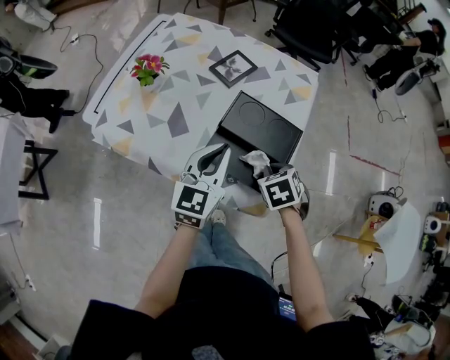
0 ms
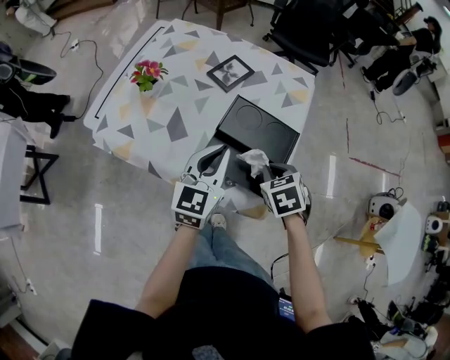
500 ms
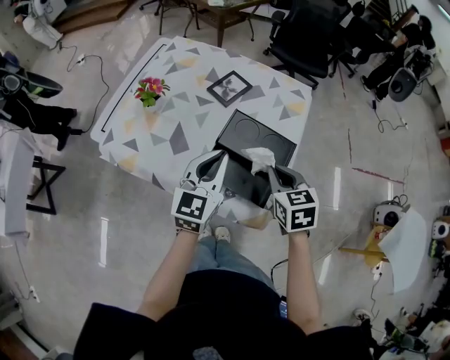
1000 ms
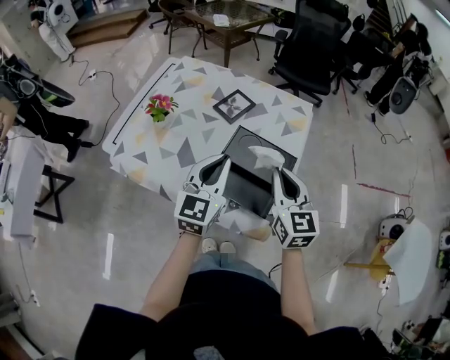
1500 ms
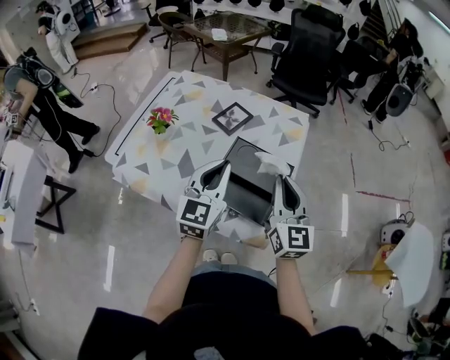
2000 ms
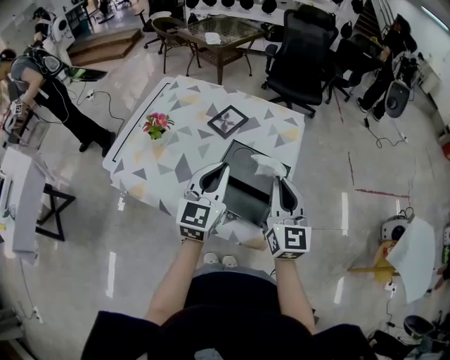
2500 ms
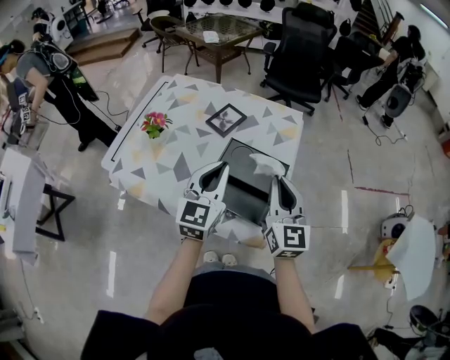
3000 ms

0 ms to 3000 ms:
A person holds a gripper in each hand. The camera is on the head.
0 ms to 1500 ms: The right gripper travels upward by roughly 15 cm, and tips its fingers upward by about 50 degrees, while the left gripper travels upward by about 5 cm.
1500 ms to 3000 ms: The grippers make only small movements.

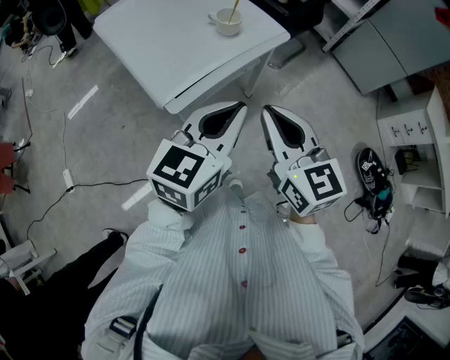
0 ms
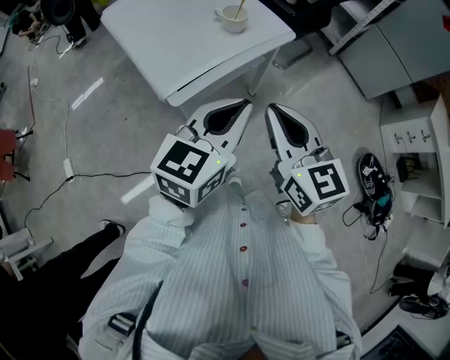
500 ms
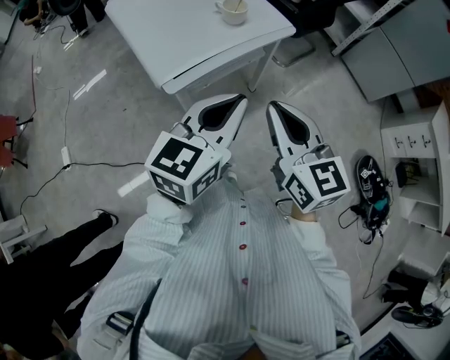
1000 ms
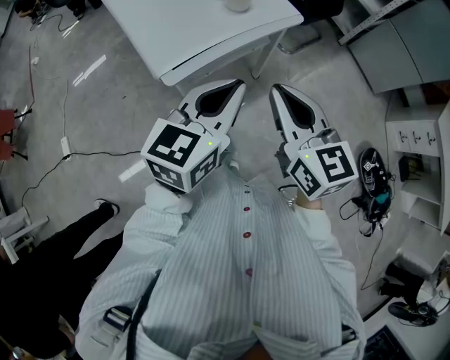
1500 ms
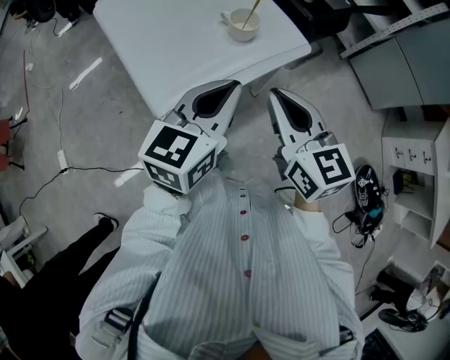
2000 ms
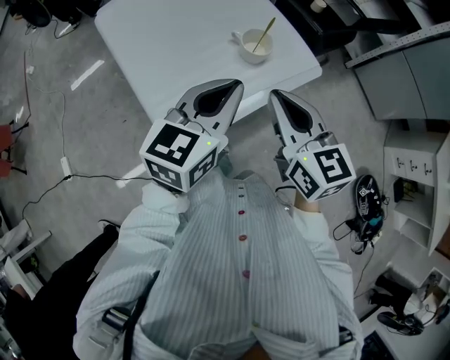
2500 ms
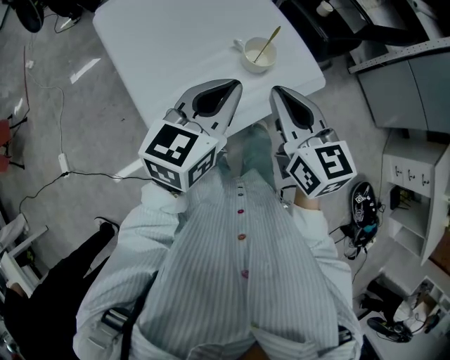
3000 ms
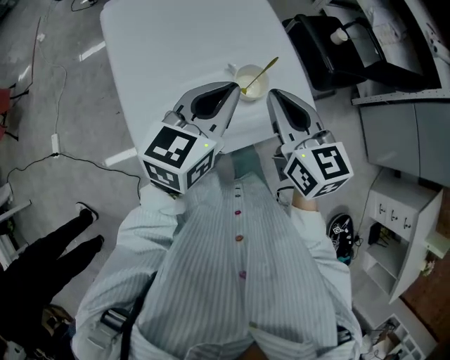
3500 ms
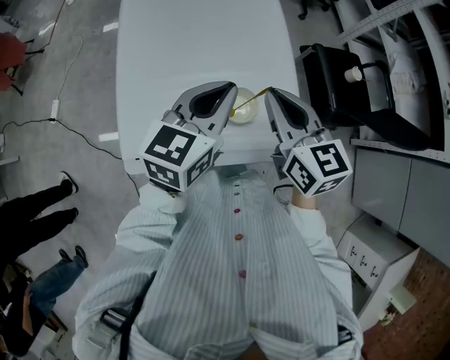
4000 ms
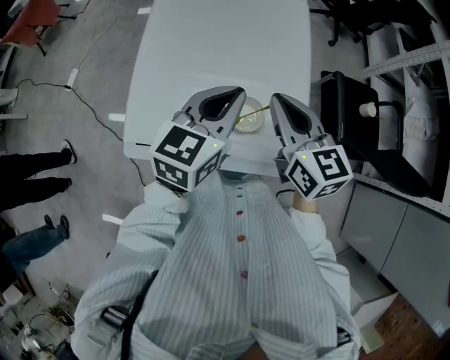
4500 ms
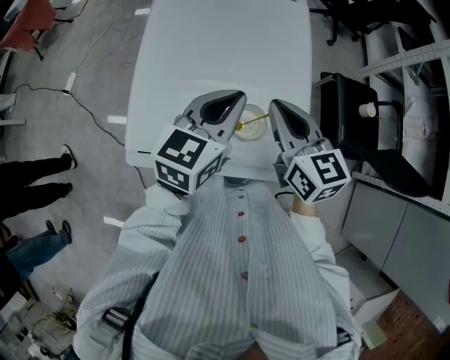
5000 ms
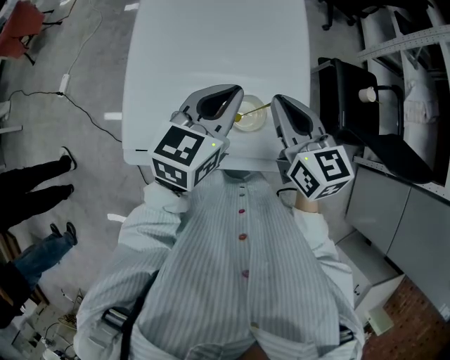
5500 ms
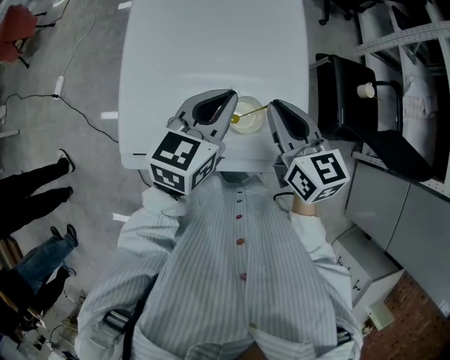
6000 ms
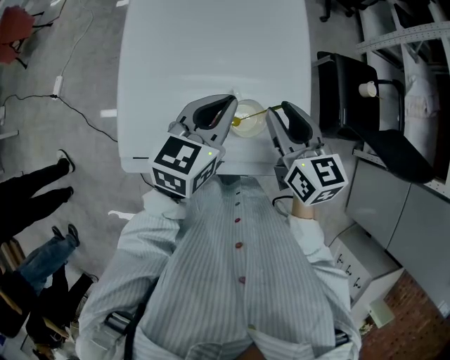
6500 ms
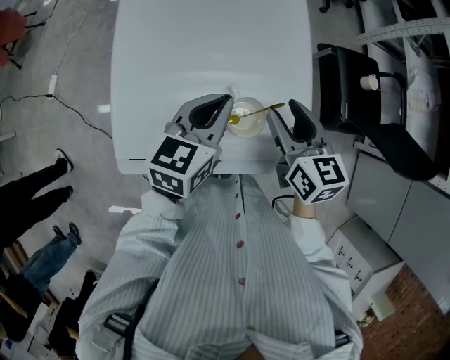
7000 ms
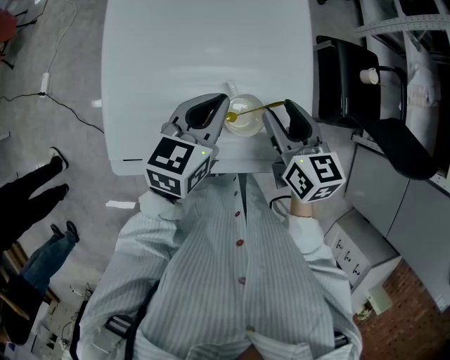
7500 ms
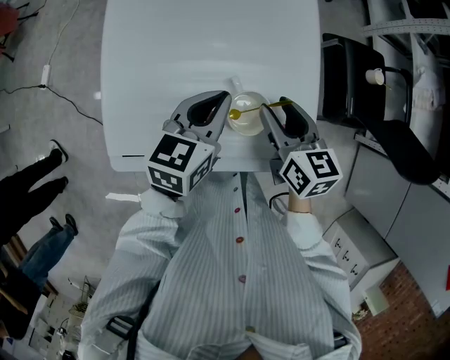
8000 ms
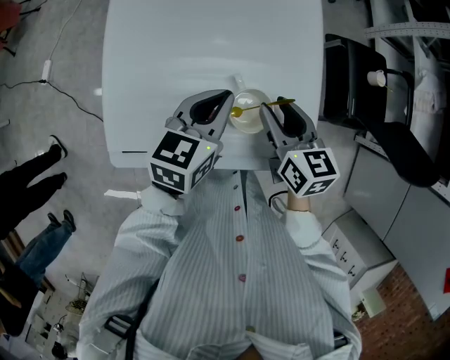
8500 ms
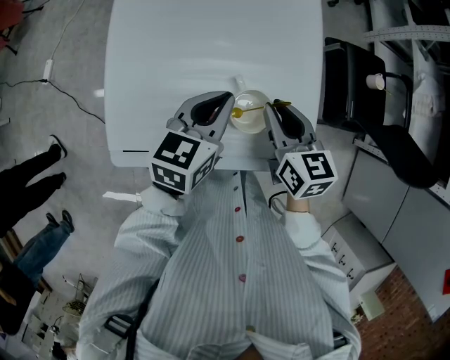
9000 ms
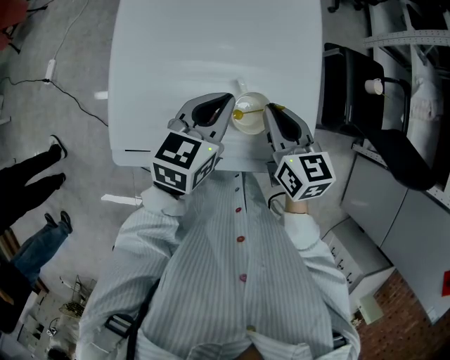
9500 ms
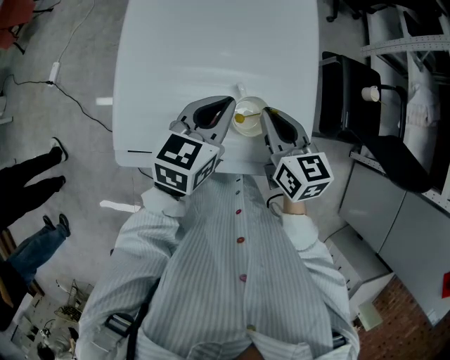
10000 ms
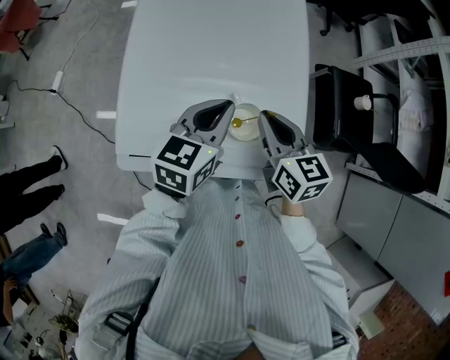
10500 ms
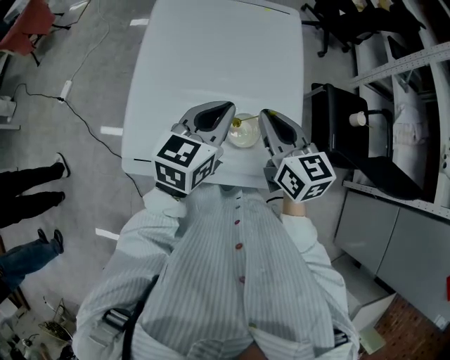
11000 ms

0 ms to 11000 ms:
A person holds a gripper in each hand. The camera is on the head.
0 ms to 2000 ms: The two grippers go approximately 15 cm forward.
2000 ms to 3500 ms: The grippers both shift forward by approximately 25 cm.
3500 ms to 5500 ms: The left gripper shifts by roughly 10 cm, and turns by approximately 20 degrees, while the right gripper changes place by some 10 cm, and turns by roughly 20 degrees.
5500 ms to 7500 ms: Both grippers move downward, roughly 10 cm. The right gripper opens its fingers.
7500 ms to 9000 ms: The right gripper closes its fingers.
9000 ms to 11000 ms: Both grippers move upward, about 10 cm.

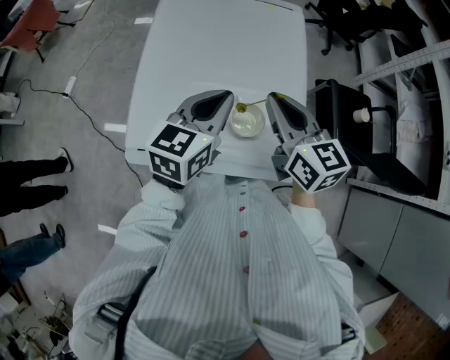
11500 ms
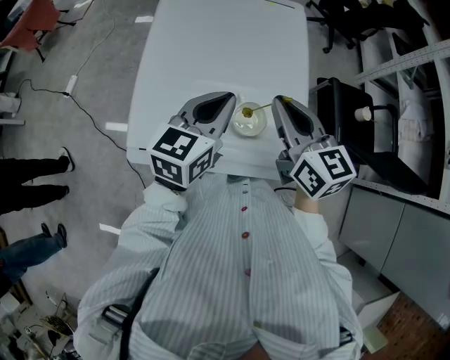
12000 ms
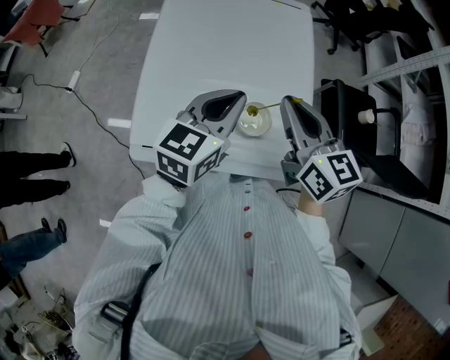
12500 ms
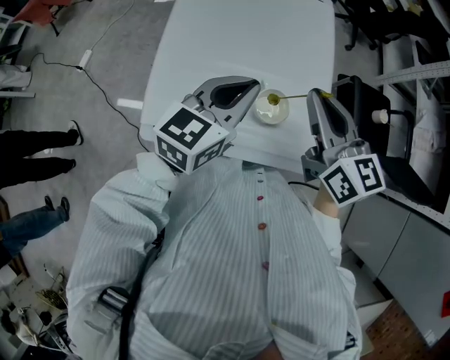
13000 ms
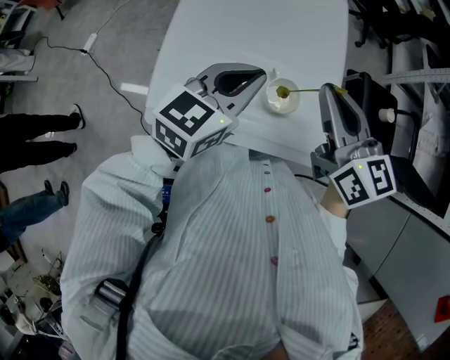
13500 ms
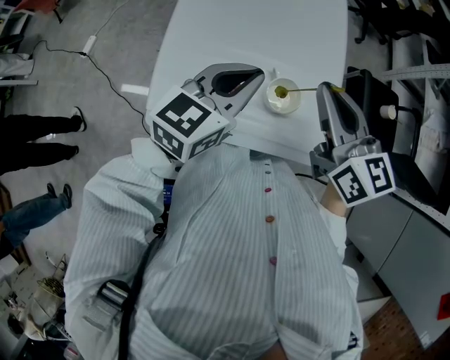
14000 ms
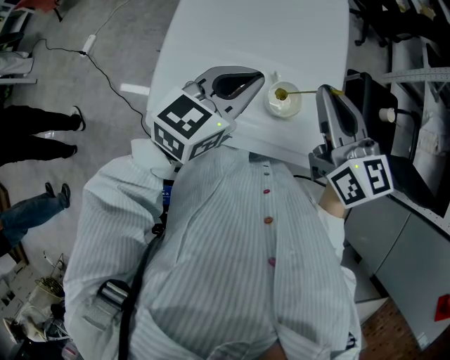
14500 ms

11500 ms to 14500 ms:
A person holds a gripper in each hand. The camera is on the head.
11500 ms to 14500 ms: The grippers stay close to where they were, moving slightly.

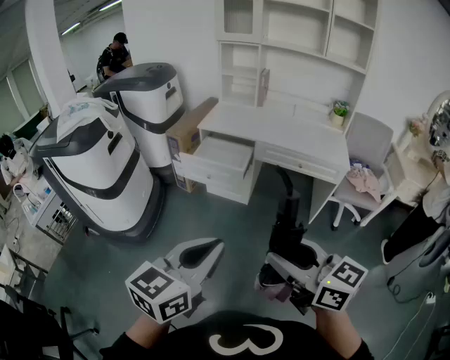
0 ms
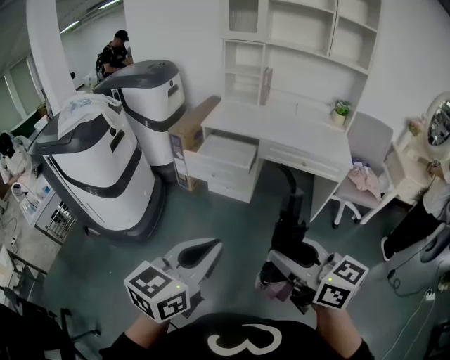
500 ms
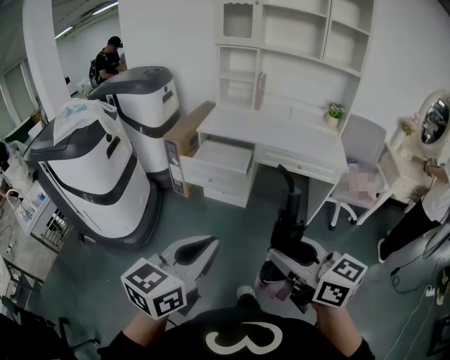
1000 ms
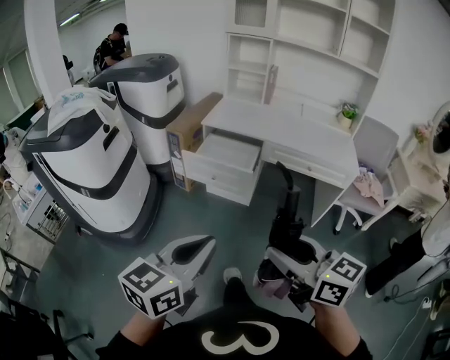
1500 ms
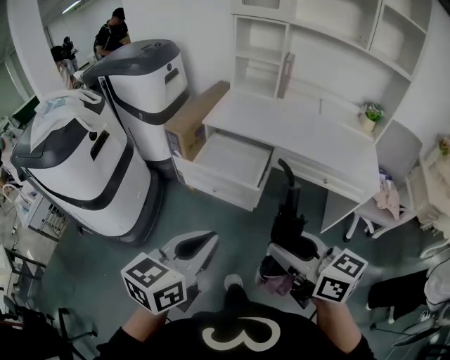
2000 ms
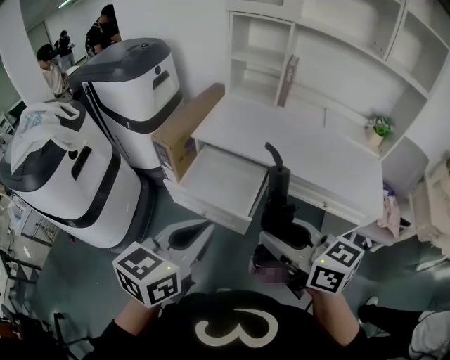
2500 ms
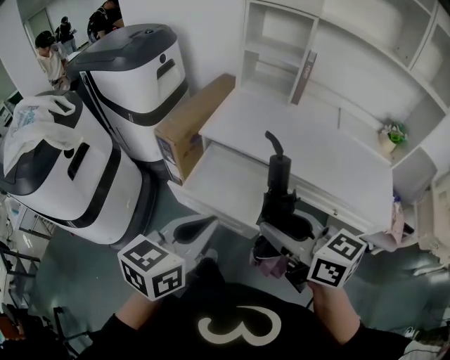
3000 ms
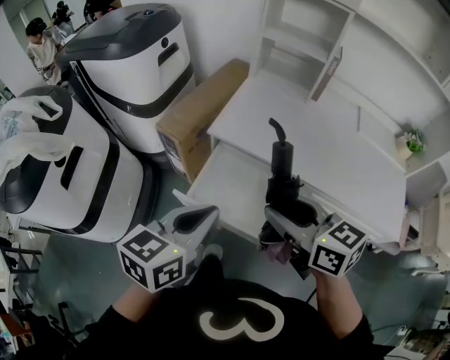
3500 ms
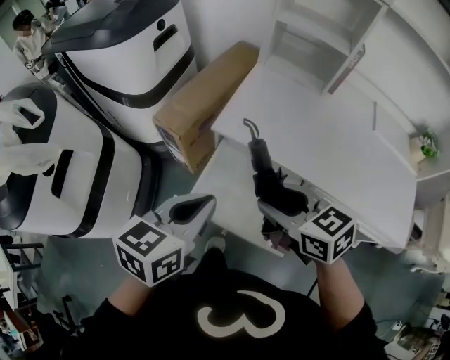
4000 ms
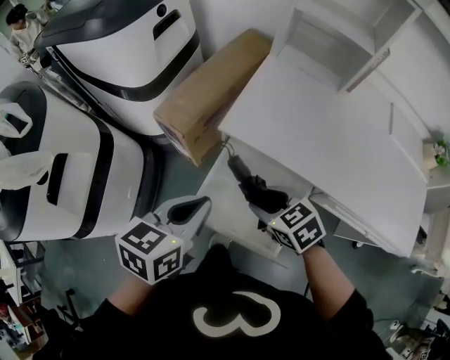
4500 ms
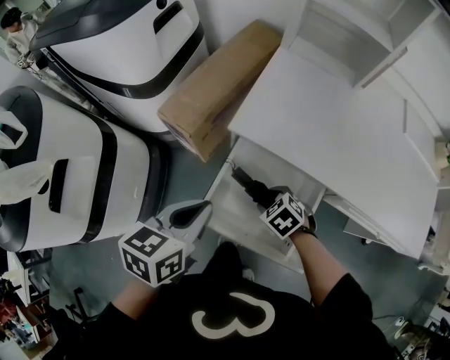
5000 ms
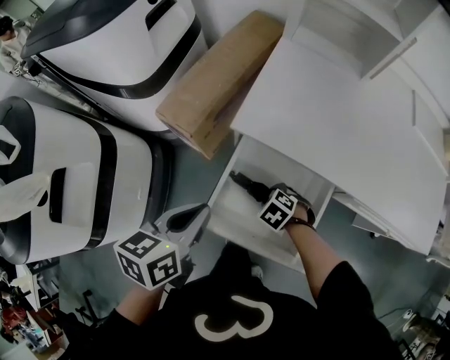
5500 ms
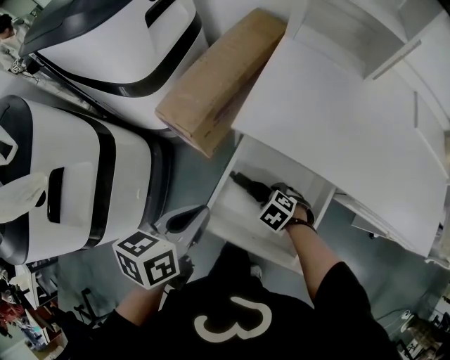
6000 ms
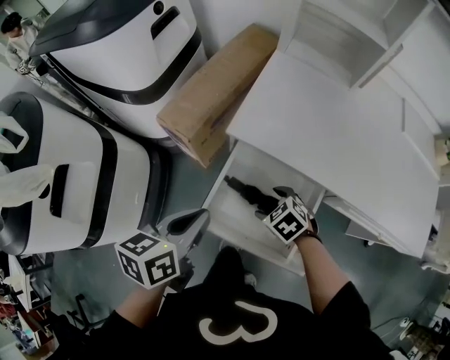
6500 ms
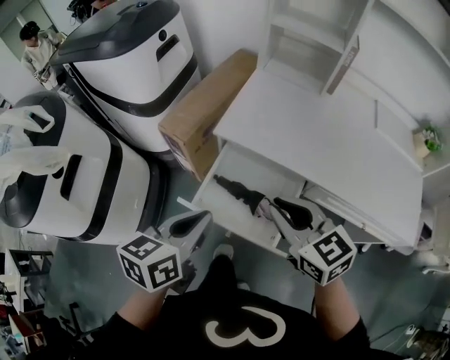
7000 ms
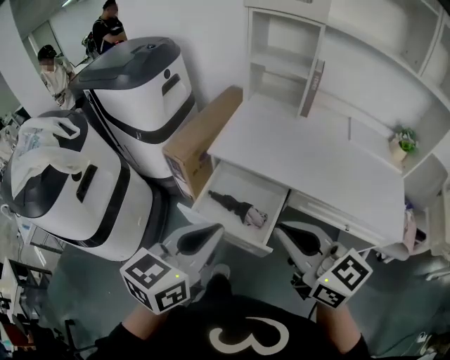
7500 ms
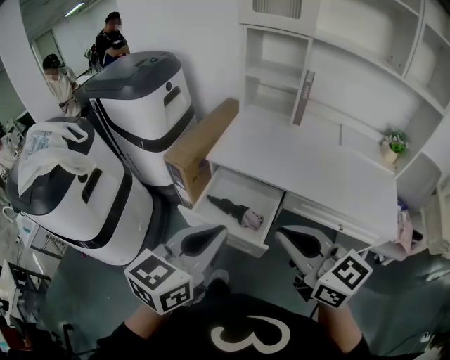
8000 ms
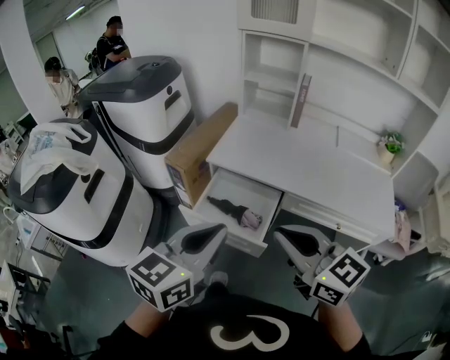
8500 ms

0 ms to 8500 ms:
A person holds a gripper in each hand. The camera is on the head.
0 ms to 2000 ms: Both grippers travel together forward, roughly 30 cm.
2000 ms to 4000 ms: Both grippers are carried forward, about 50 cm. The right gripper swivels some 30 degrees.
4000 ms to 6500 ms: The right gripper heads downward, covering about 25 cm, tips its fingers downward by about 30 degrees, and opens; the left gripper heads downward, covering roughly 10 cm.
6500 ms to 8500 ms: The right gripper goes approximately 50 cm upward and backward, angles its fingers upward, by roughly 60 degrees, and closes its fingers, while the left gripper is displaced backward, upward and to the right by roughly 40 cm, and changes its angle by roughly 40 degrees.

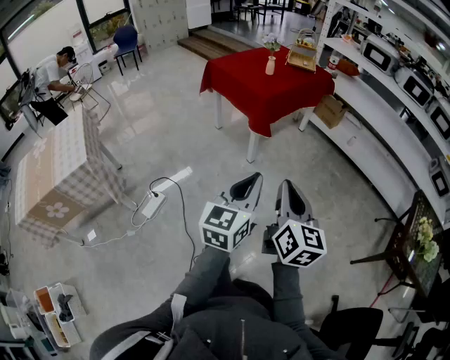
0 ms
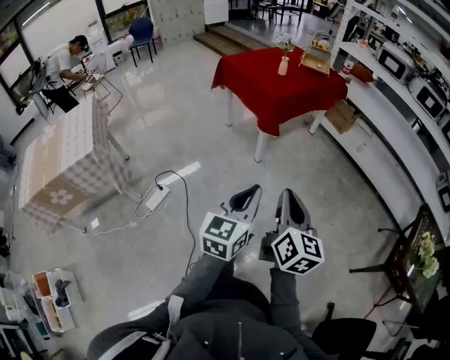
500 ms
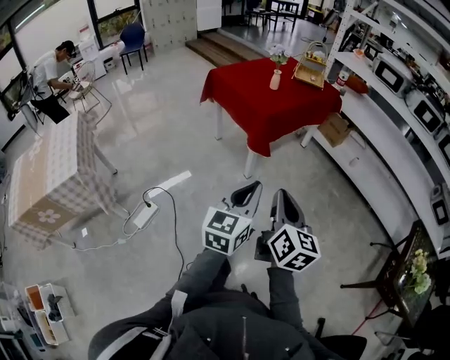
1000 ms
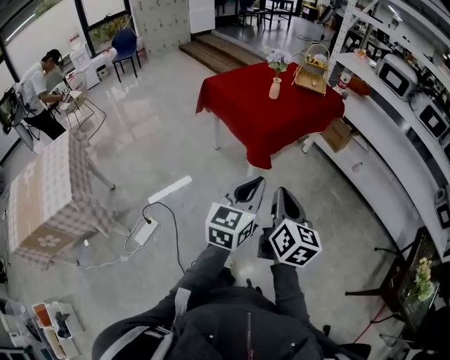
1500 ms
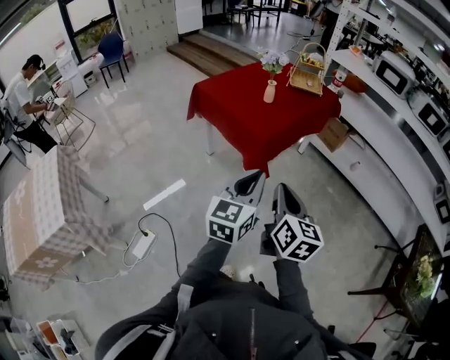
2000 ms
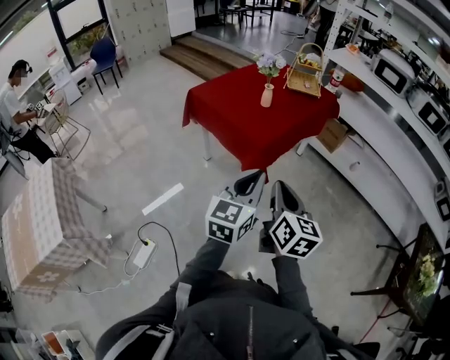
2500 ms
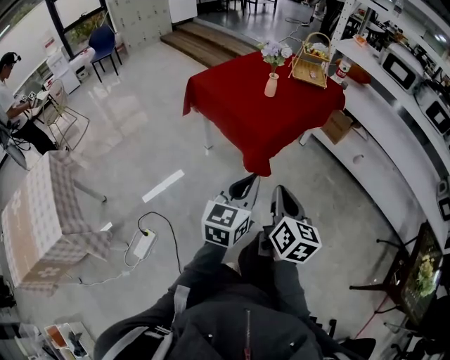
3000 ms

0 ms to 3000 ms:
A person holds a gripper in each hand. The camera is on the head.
0 ms to 1500 ms: Both grippers travel together forward, some 25 cm.
1500 ms to 3000 ms: The right gripper heads forward, covering approximately 15 cm. Meanwhile the left gripper travels forward and to the left by some 15 cm.
